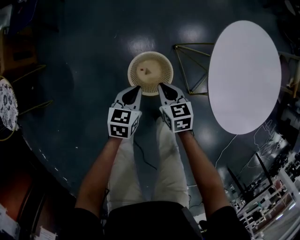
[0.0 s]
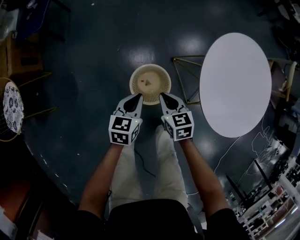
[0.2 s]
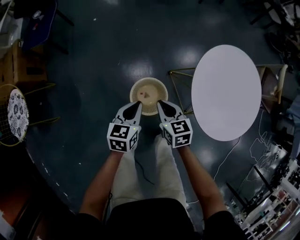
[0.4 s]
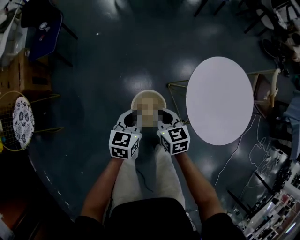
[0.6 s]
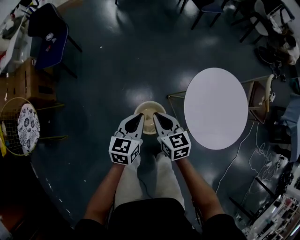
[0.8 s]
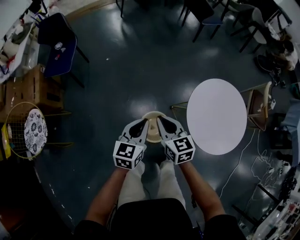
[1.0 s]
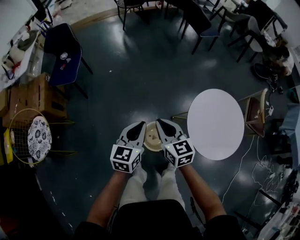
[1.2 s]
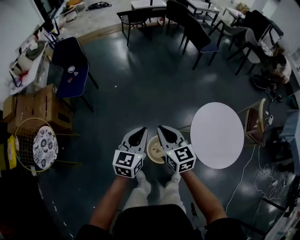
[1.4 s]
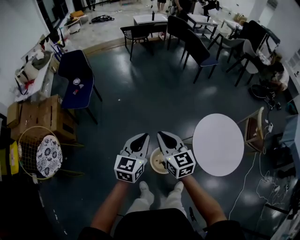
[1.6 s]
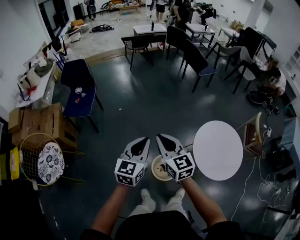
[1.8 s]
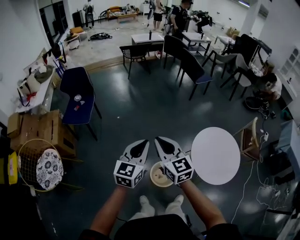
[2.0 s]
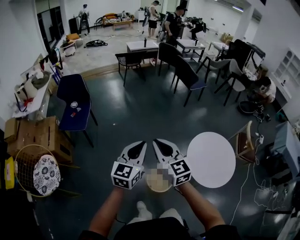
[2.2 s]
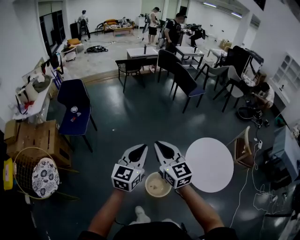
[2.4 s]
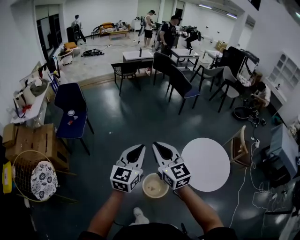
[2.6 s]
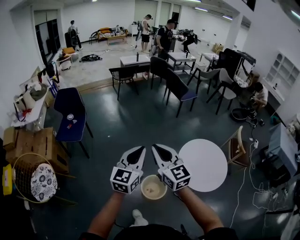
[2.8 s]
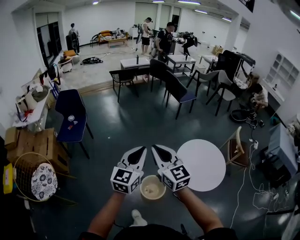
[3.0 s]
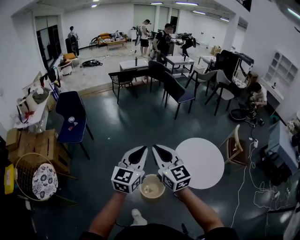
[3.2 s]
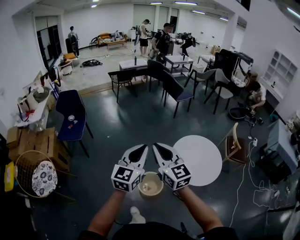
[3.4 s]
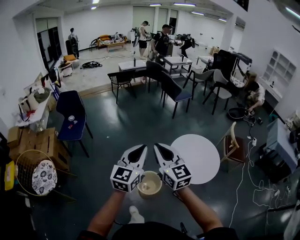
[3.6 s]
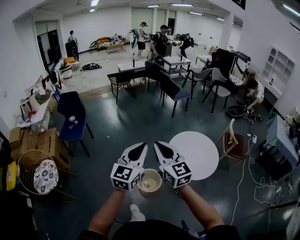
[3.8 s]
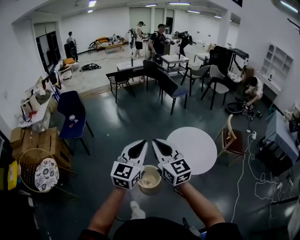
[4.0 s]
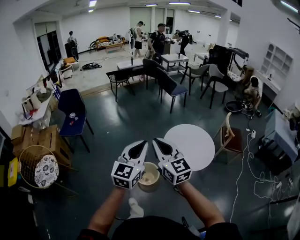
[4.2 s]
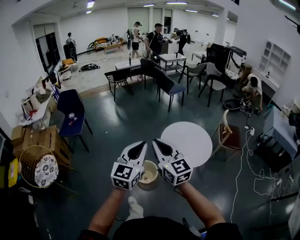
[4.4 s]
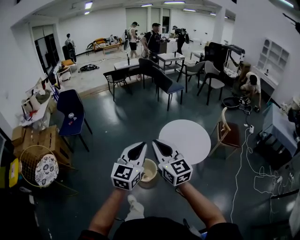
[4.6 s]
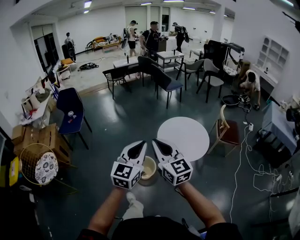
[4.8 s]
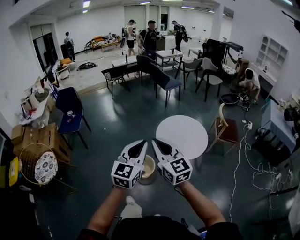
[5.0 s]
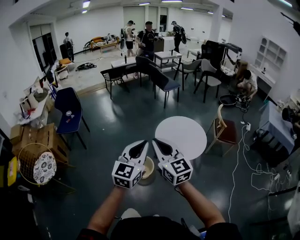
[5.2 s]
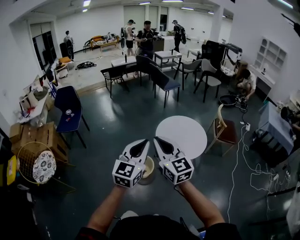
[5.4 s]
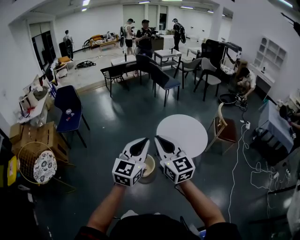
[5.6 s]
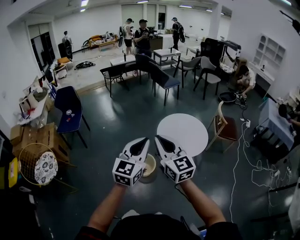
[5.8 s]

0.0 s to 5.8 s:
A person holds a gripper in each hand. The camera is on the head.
0.0 to 1.4 s: The two grippers go about 50 cm upward. The right gripper changes its angle by approximately 30 degrees, while the left gripper changes its angle by about 30 degrees.
1.4 to 2.8 s: The grippers both shift upward by approximately 20 cm.
2.8 to 4.4 s: The two grippers go some 35 cm backward and to the right.
4.4 to 5.8 s: Both grippers move backward, approximately 5 cm.

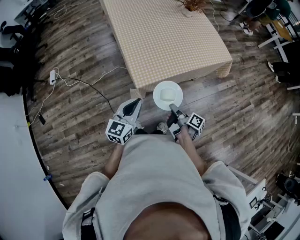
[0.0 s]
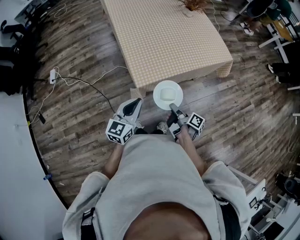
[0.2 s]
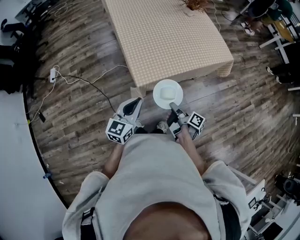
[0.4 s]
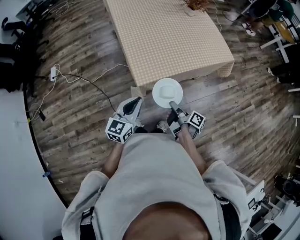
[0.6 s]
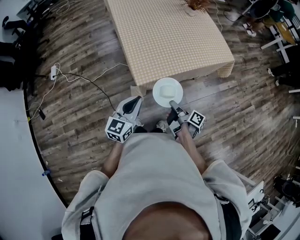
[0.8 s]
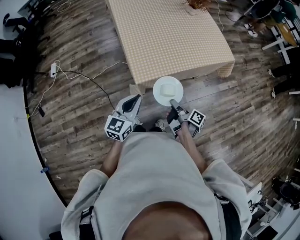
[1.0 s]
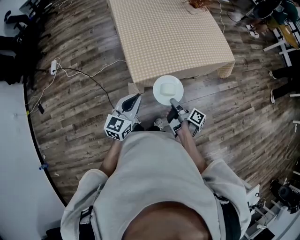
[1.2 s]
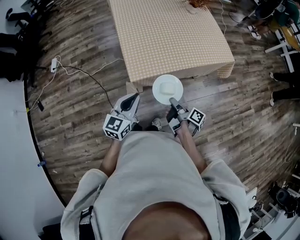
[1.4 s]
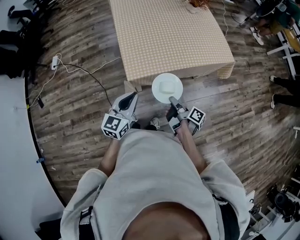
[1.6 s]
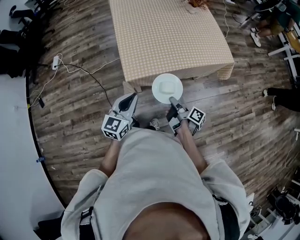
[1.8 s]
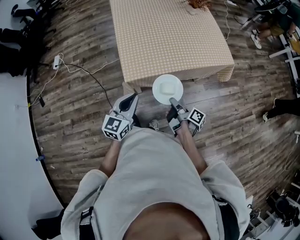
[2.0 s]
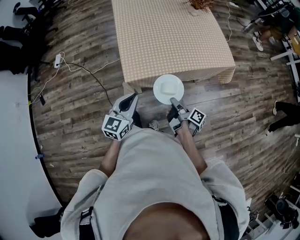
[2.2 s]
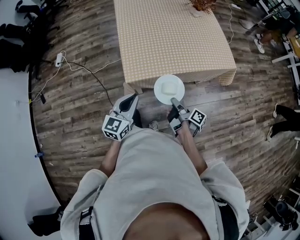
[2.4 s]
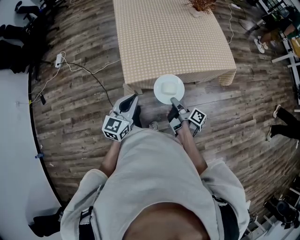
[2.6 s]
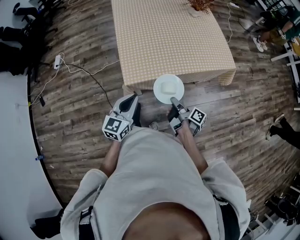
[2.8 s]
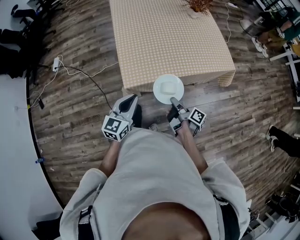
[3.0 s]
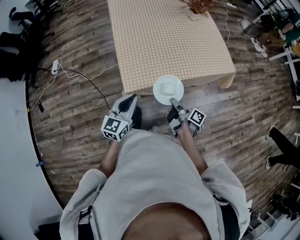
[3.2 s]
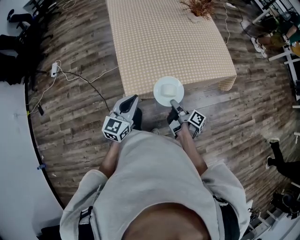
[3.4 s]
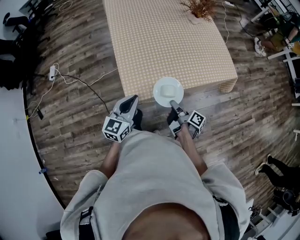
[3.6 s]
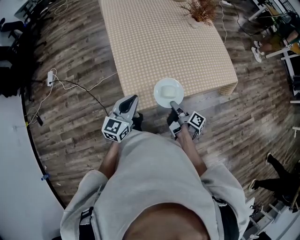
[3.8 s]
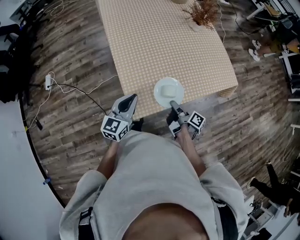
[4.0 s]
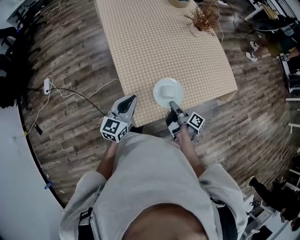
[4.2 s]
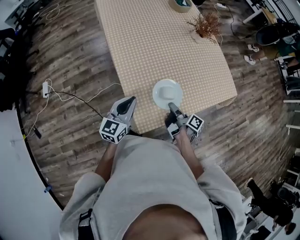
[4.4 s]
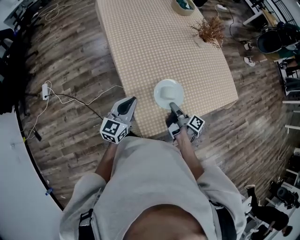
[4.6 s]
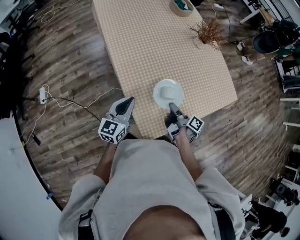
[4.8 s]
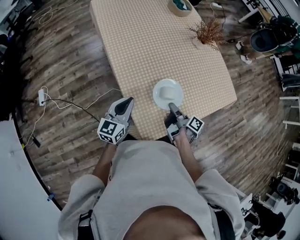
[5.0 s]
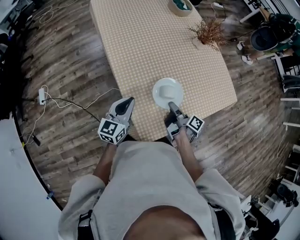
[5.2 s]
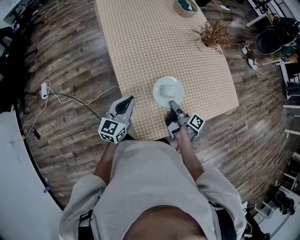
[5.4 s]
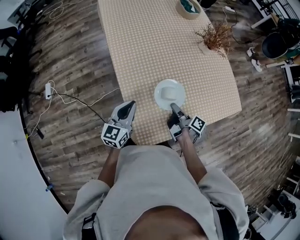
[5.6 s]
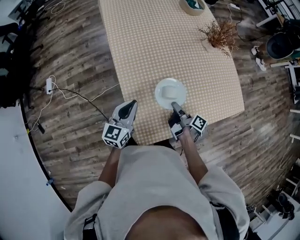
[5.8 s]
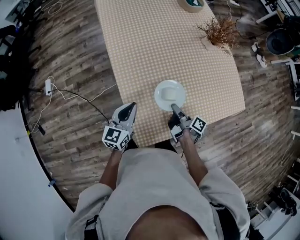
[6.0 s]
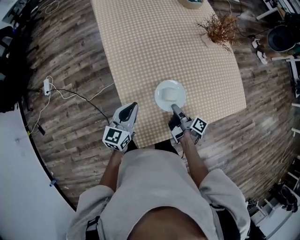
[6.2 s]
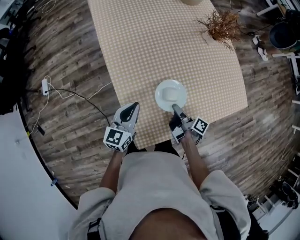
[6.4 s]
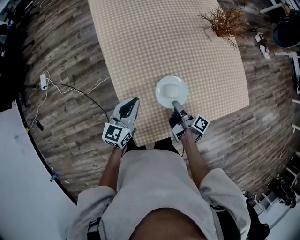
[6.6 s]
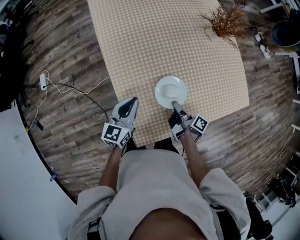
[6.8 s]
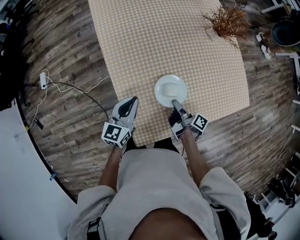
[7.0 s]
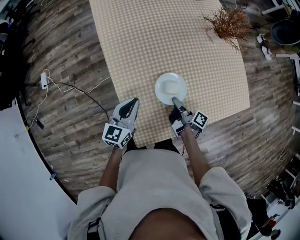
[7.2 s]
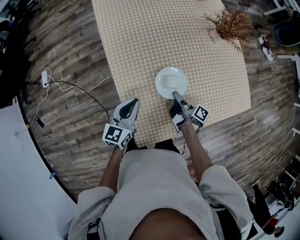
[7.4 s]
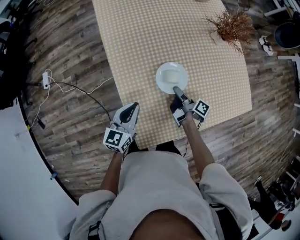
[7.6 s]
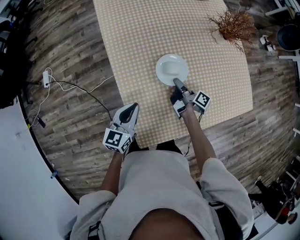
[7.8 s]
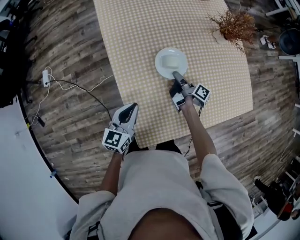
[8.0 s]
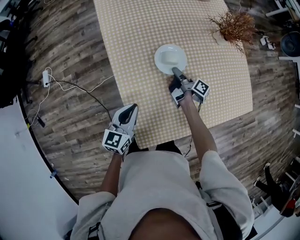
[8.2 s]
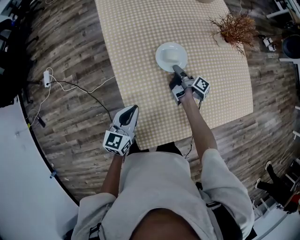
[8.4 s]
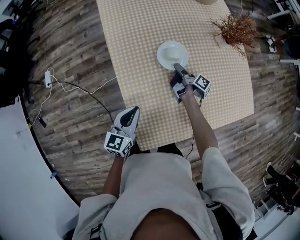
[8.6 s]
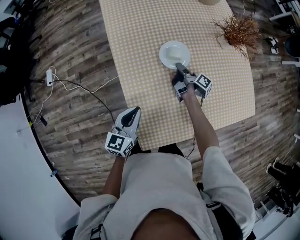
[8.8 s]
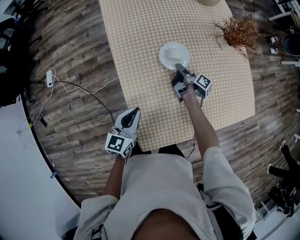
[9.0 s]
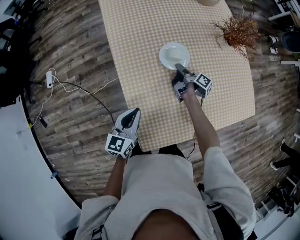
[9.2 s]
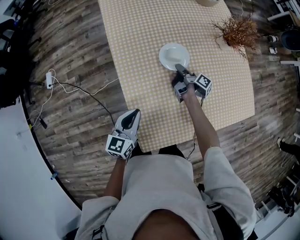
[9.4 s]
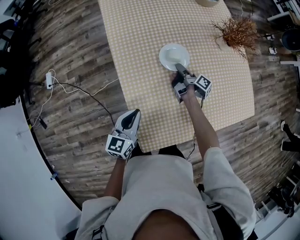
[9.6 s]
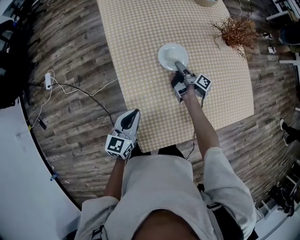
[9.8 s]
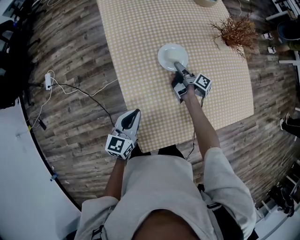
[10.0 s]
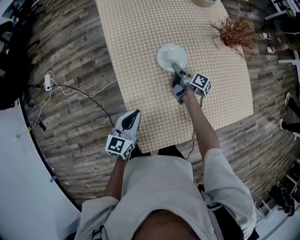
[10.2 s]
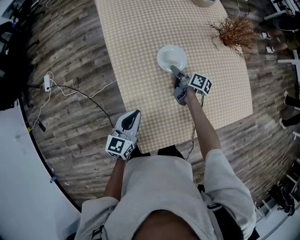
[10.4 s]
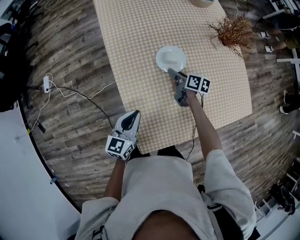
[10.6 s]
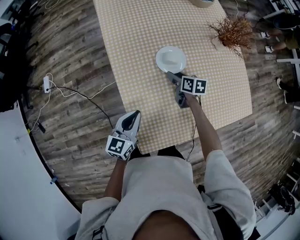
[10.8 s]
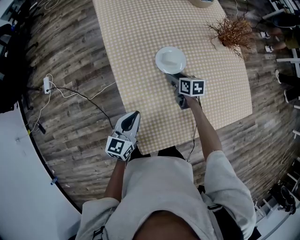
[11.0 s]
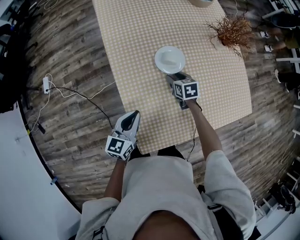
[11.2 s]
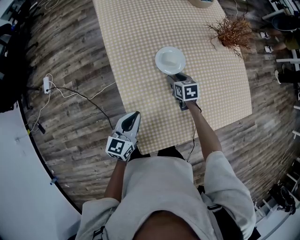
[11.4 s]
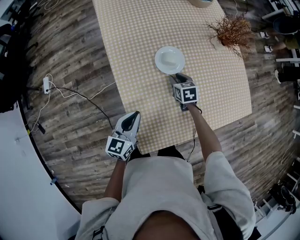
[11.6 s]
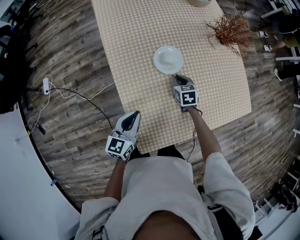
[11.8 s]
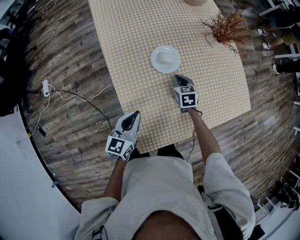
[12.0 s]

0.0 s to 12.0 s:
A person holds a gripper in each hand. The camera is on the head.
0.0 to 1.6 s: The left gripper moves approximately 5 cm.
3.0 to 4.4 s: The left gripper shifts by about 25 cm.
4.4 to 6.0 s: The left gripper changes place by approximately 10 cm.

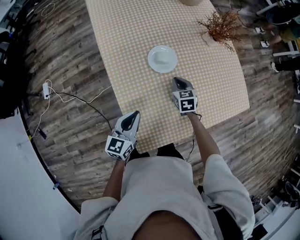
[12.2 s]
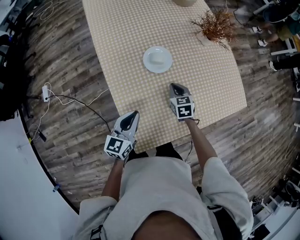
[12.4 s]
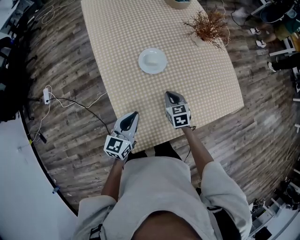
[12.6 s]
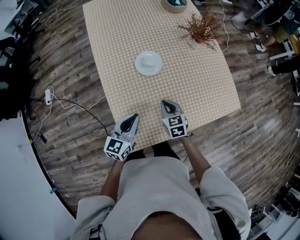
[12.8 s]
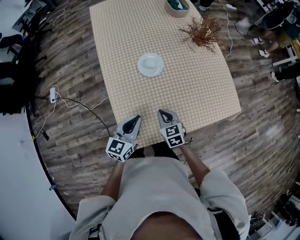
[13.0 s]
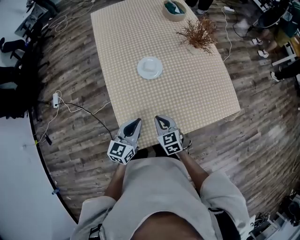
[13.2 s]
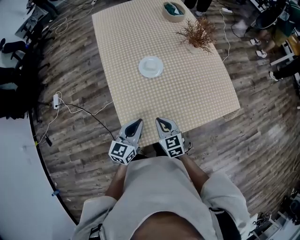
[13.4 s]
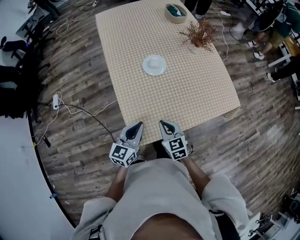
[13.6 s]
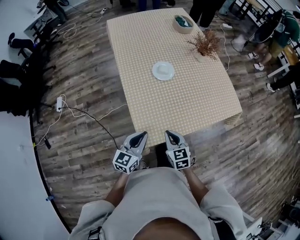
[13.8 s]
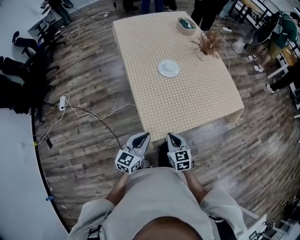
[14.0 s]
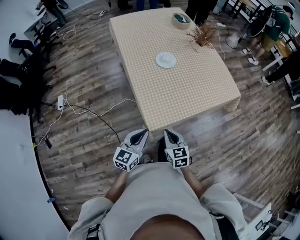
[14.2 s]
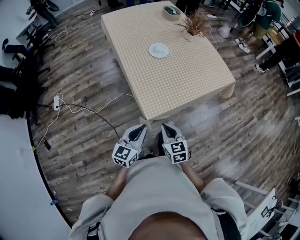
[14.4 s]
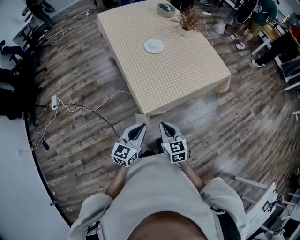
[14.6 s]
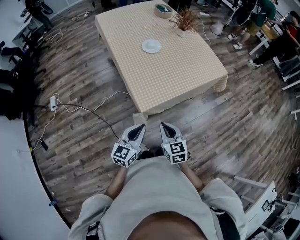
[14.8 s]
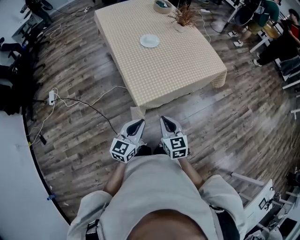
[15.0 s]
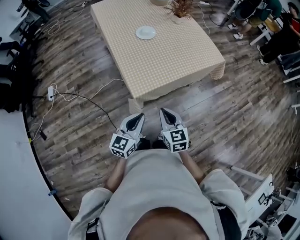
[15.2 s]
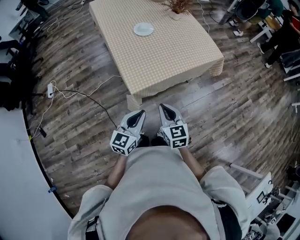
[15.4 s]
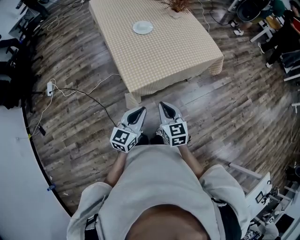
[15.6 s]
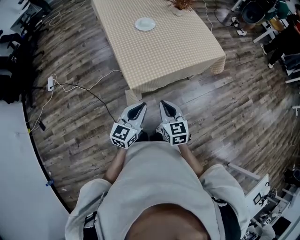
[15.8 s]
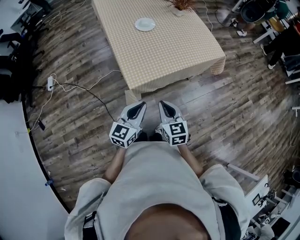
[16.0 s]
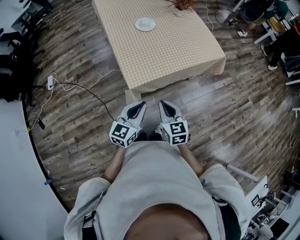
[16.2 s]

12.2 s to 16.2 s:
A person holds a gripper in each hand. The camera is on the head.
12.2 to 13.6 s: The left gripper ends up roughly 15 cm from where it was.
13.6 to 14.8 s: The left gripper moves about 25 cm.
14.8 to 16.2 s: The left gripper changes place by approximately 10 cm.

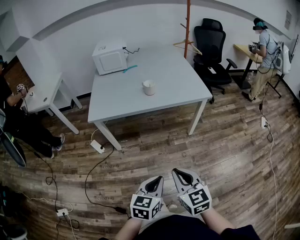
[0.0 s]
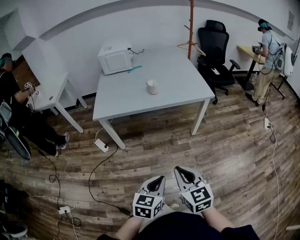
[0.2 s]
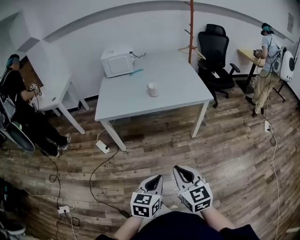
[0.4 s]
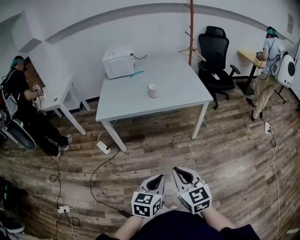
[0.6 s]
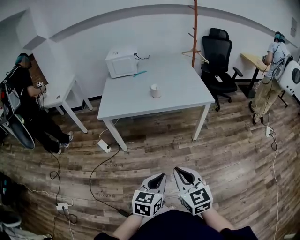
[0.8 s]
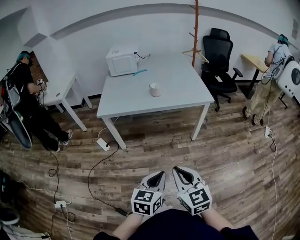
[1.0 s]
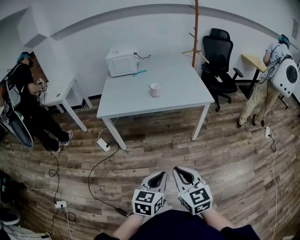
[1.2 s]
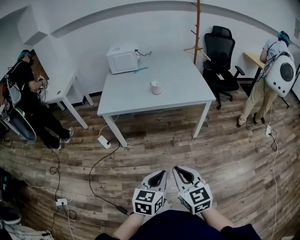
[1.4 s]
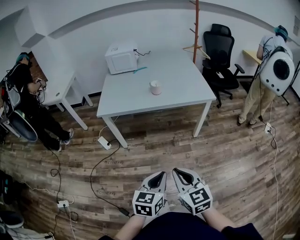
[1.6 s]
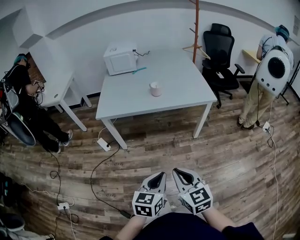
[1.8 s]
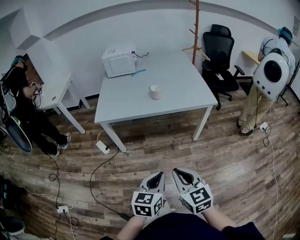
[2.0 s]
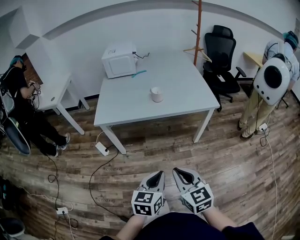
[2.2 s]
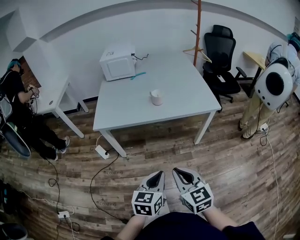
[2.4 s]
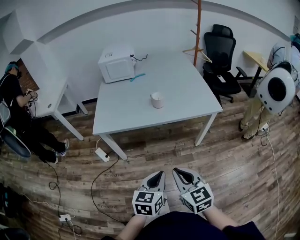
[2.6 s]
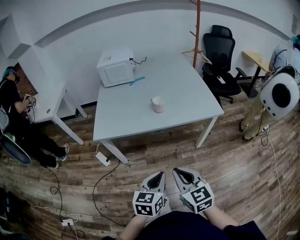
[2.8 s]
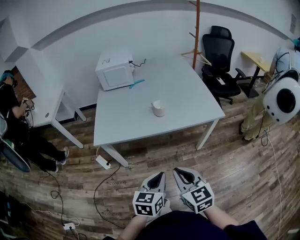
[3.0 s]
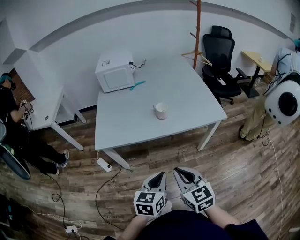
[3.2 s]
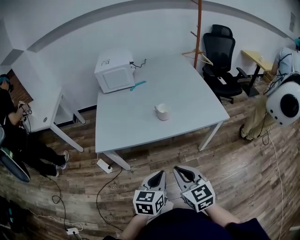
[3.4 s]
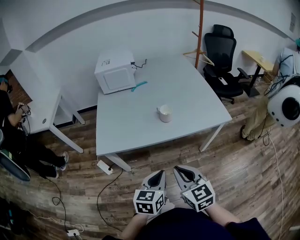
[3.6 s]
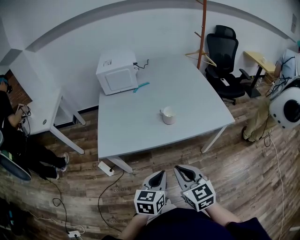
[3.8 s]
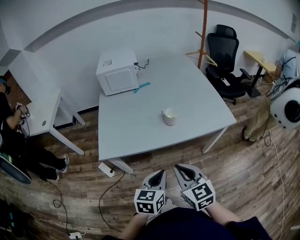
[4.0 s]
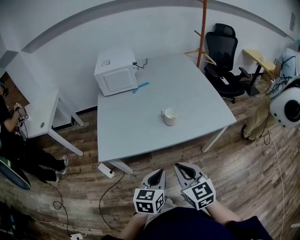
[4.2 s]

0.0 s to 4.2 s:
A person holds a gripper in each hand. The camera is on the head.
0.0 to 1.4 s: The left gripper shifts by about 5 cm; the right gripper is displaced backward by roughly 5 cm.
1.4 to 2.8 s: The grippers both shift forward by some 20 cm.
2.8 to 4.2 s: The two grippers go about 15 cm forward and to the left.
